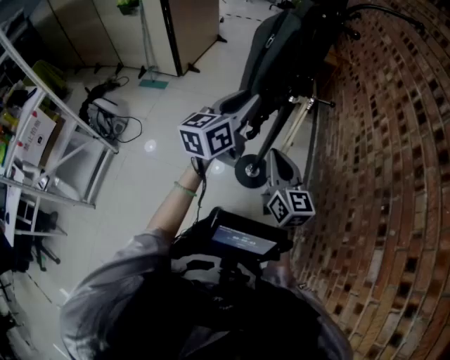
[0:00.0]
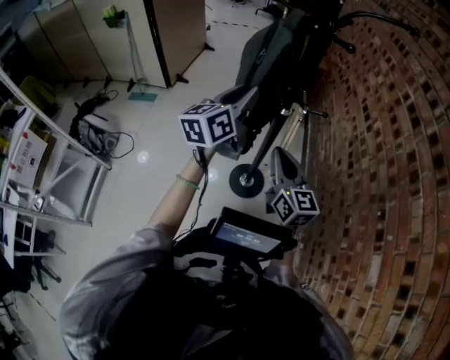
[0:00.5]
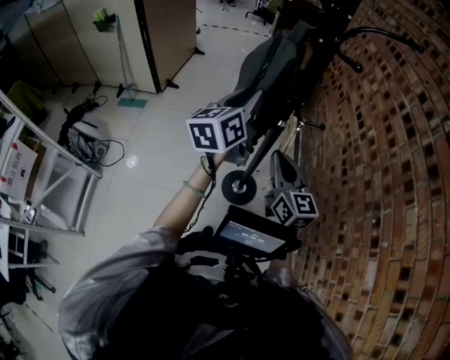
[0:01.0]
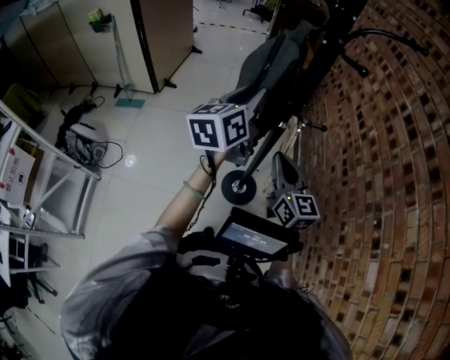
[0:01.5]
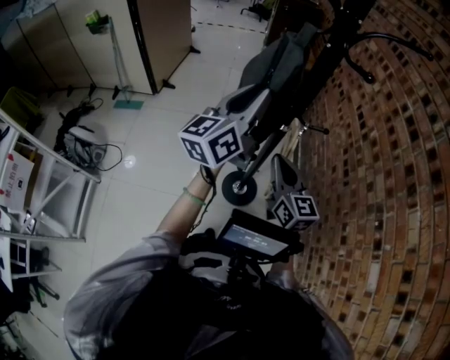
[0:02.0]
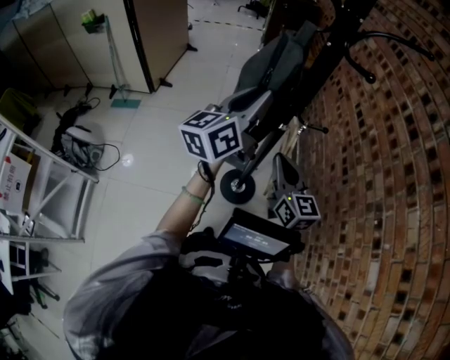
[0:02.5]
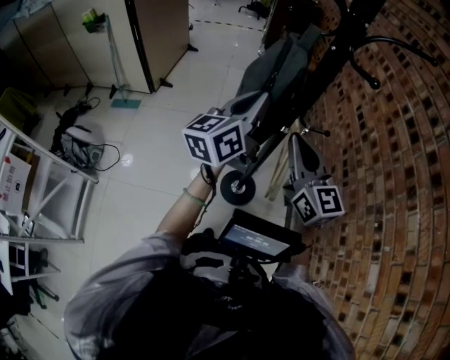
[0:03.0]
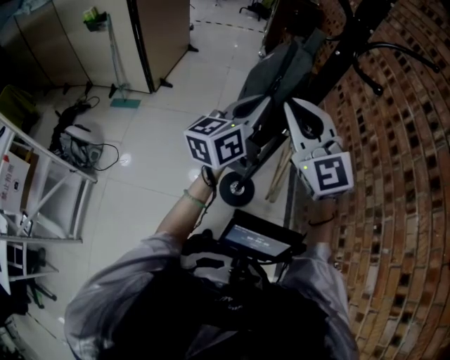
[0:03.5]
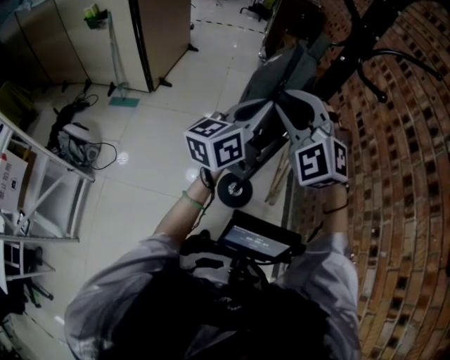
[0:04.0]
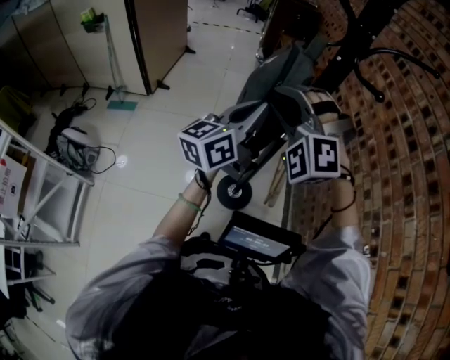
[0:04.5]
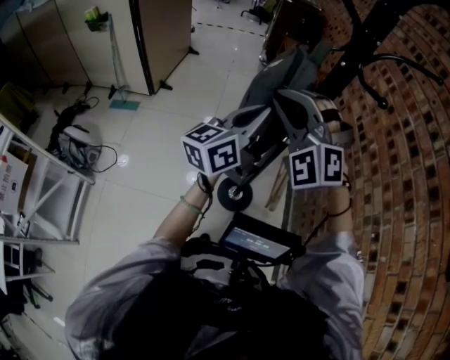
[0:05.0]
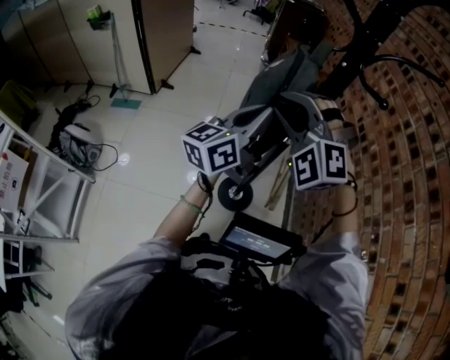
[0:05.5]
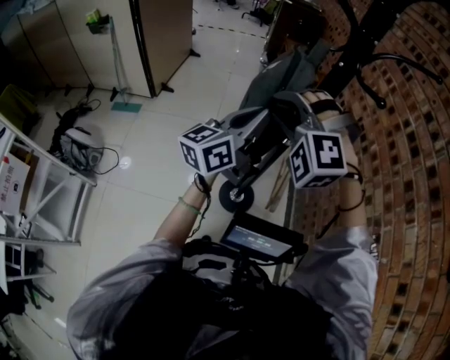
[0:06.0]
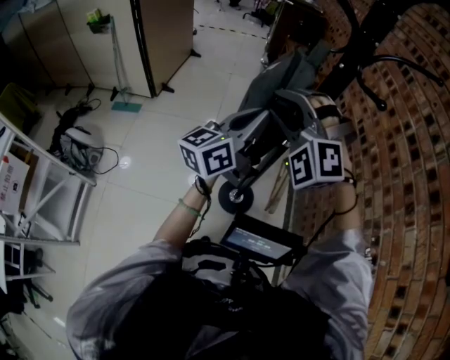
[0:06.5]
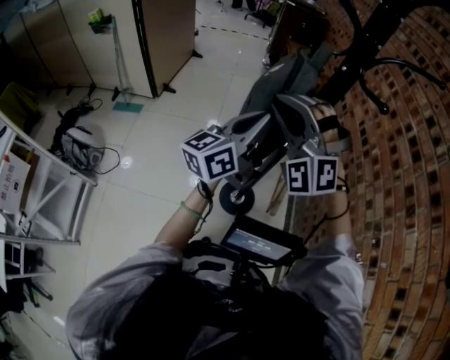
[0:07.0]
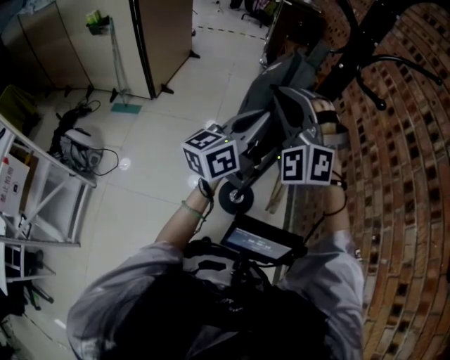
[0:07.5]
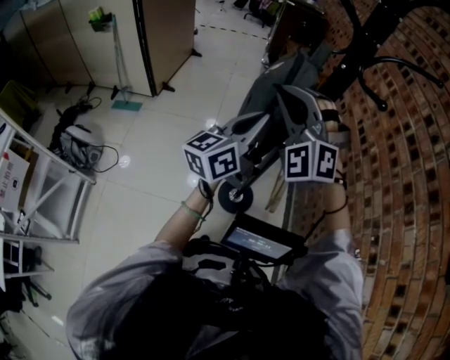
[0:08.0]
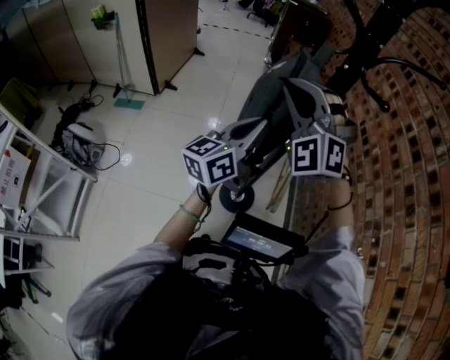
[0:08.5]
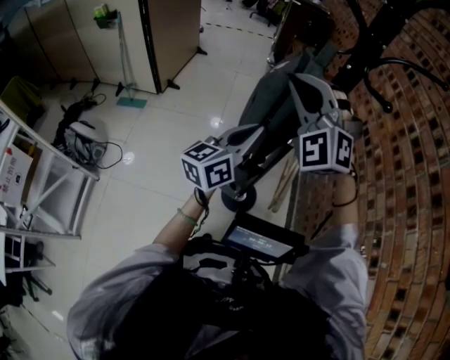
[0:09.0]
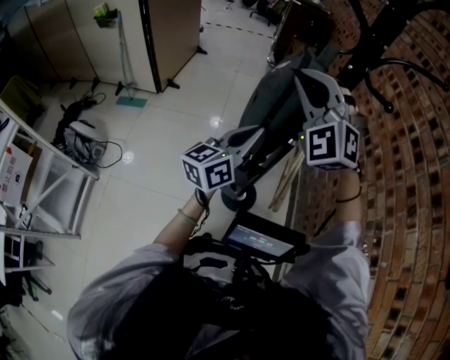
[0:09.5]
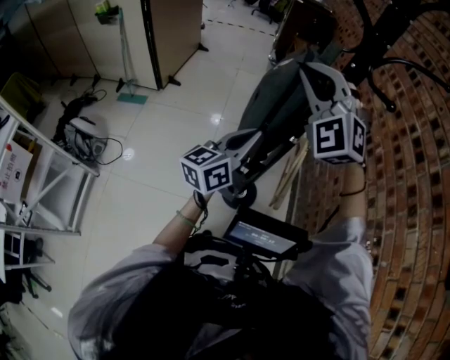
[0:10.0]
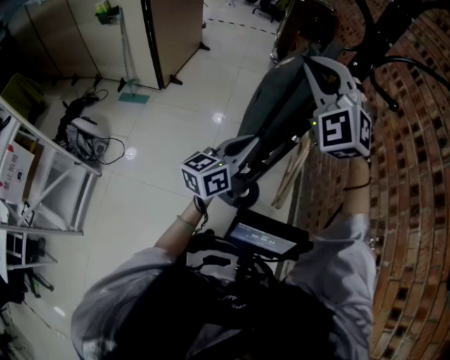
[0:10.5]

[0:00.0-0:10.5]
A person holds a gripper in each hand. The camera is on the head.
0:00.0 to 0:02.0: The left gripper heads forward and upward, covering some 10 cm, while the right gripper heads forward, covering about 10 cm.
0:02.0 to 0:04.0: The right gripper moves upward and to the left, some 20 cm, rotates around the line of its fingers by roughly 70 degrees, counterclockwise from behind, and opens up. Meanwhile the left gripper closes up.
0:04.0 to 0:06.5: The right gripper swivels approximately 20 degrees.
0:06.5 to 0:08.5: The right gripper closes up.
0:08.5 to 0:10.5: The left gripper shifts about 5 cm downward.

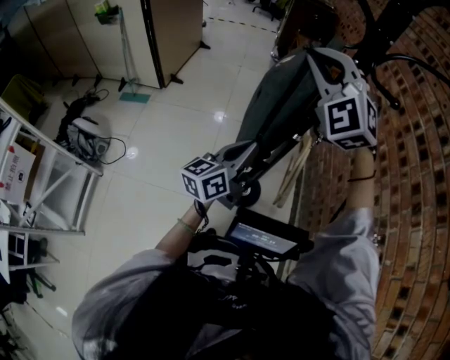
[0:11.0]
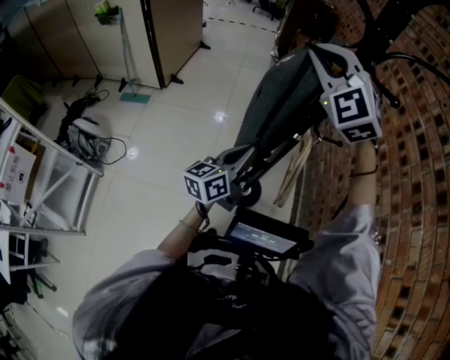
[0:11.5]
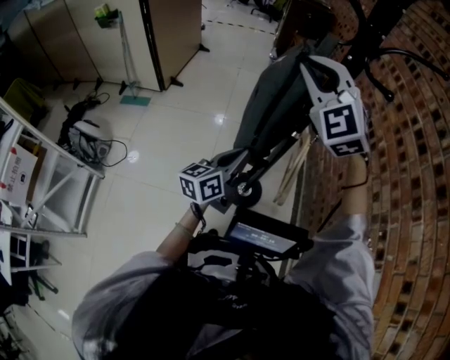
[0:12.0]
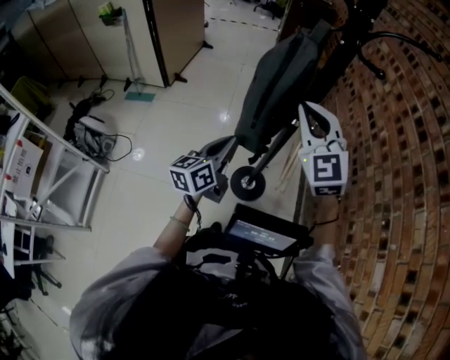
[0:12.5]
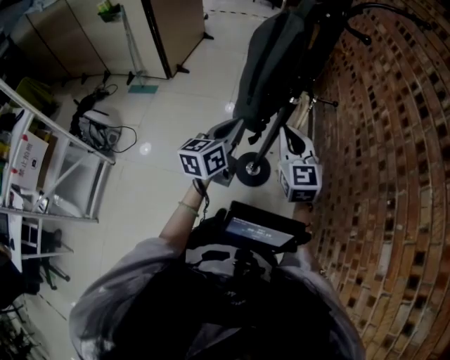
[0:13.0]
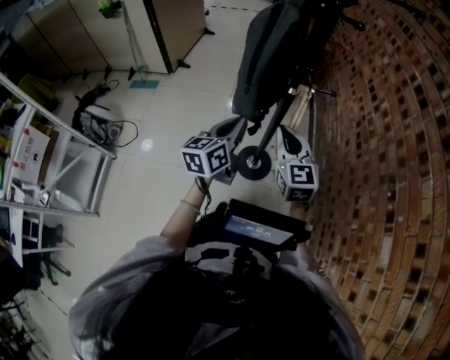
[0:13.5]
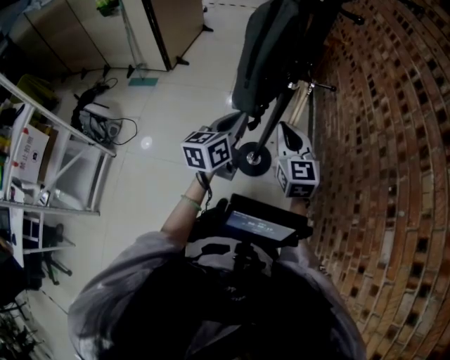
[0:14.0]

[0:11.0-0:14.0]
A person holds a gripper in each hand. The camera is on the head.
0:11.0 to 0:12.5: The right gripper shifts about 15 cm downward, backward and to the right, and swivels roughly 30 degrees. Meanwhile the left gripper changes place by some 5 cm.
0:12.5 to 0:14.0: The right gripper is displaced downward and backward by some 20 cm, and turns by approximately 30 degrees; the left gripper moves about 5 cm.

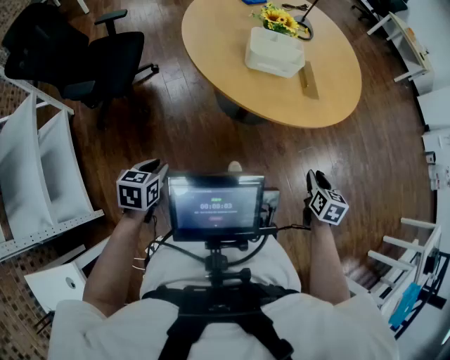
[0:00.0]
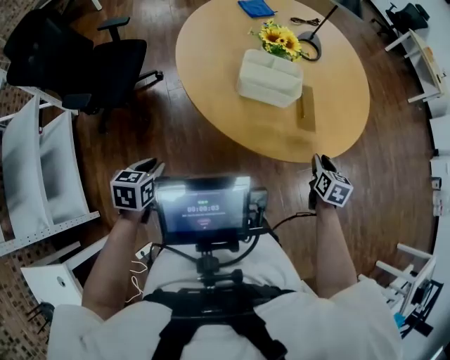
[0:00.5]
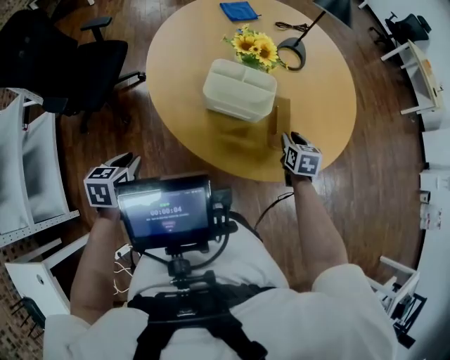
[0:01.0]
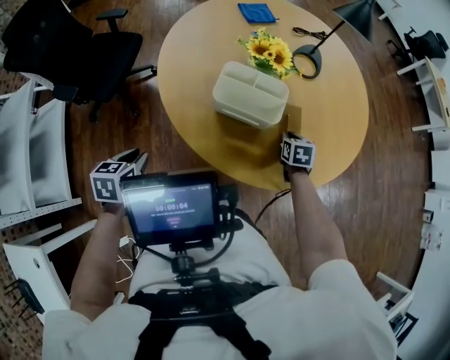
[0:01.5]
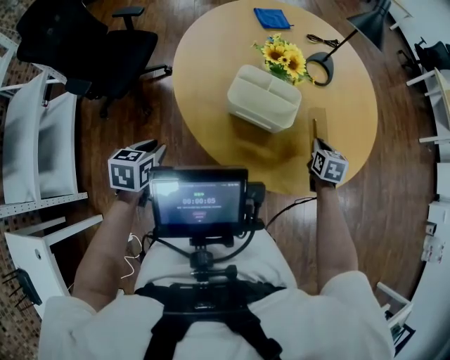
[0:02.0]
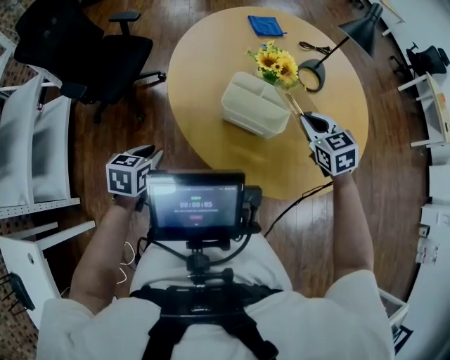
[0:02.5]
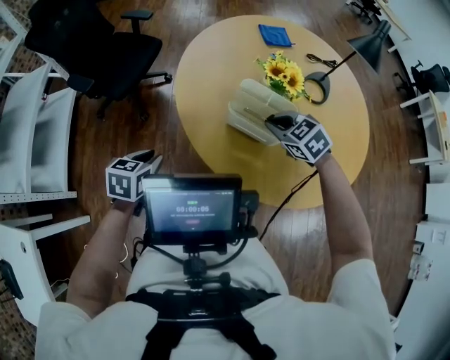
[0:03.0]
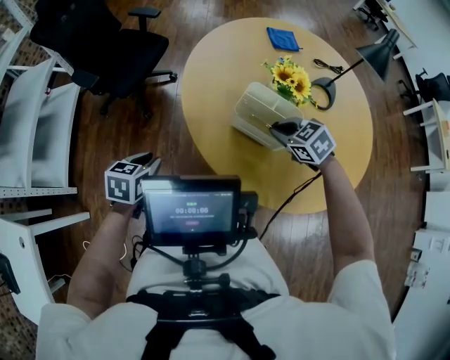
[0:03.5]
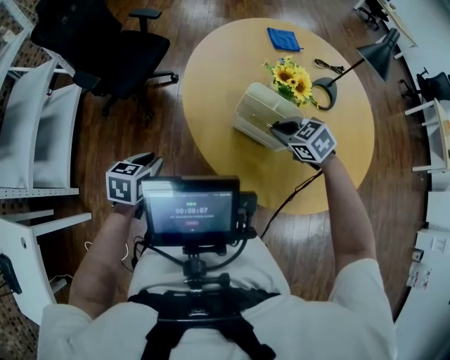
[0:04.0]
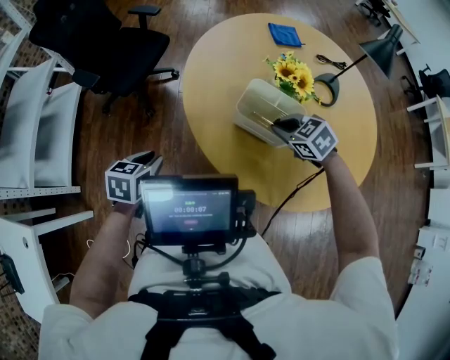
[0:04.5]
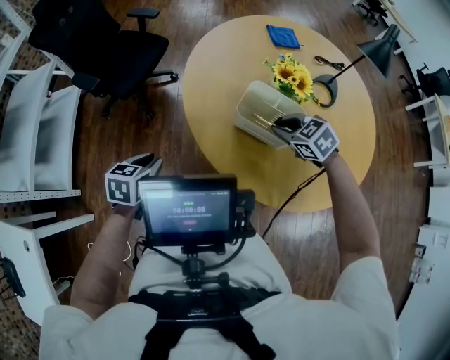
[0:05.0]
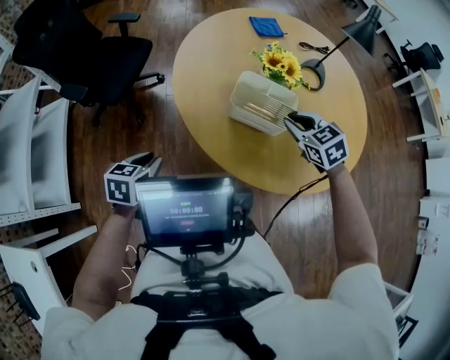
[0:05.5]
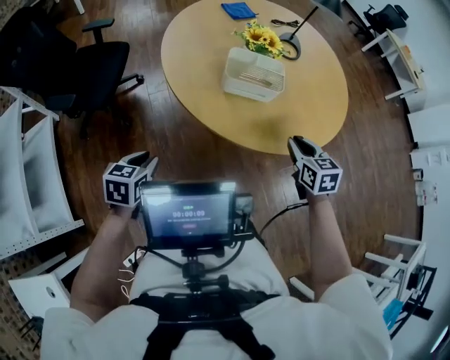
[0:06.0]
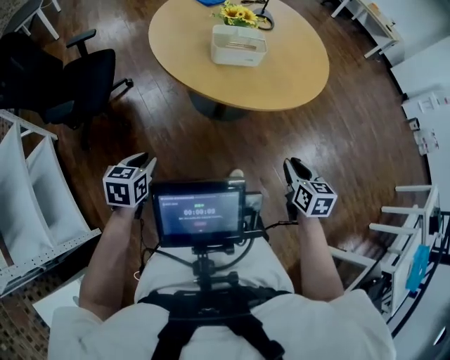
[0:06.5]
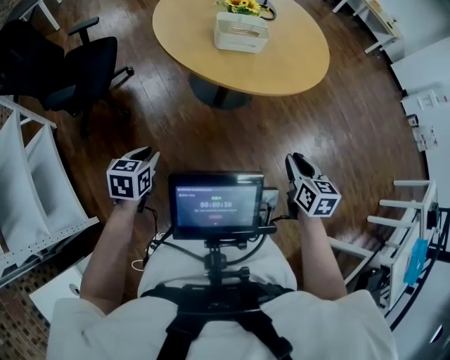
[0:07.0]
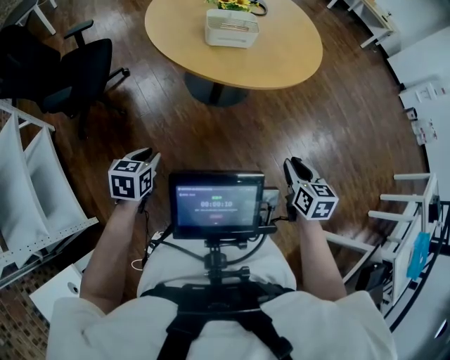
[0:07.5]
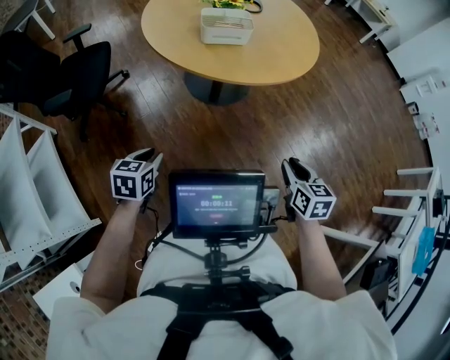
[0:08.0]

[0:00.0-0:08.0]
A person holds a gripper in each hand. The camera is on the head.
0:00.0 to 0:02.0: The right gripper moves forward, about 40 cm, rotates roughly 20 degrees, and closes its fingers, while the left gripper heads forward and to the right, covering roughly 20 cm.
0:02.0 to 0:04.0: The right gripper shifts by approximately 25 cm, and turns by about 60 degrees.
0:04.0 to 0:06.0: The right gripper moves about 20 cm, and turns by about 60 degrees. The left gripper shifts by approximately 10 cm.
0:06.0 to 0:08.0: The left gripper shifts roughly 15 cm backward, while the right gripper moves backward, about 35 cm, and rotates approximately 20 degrees.

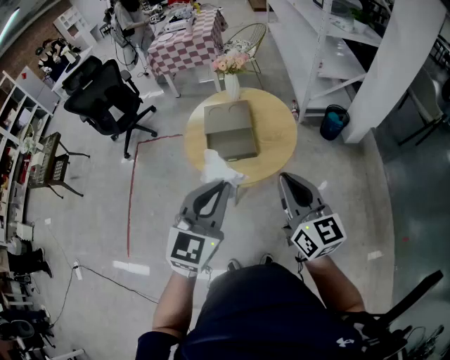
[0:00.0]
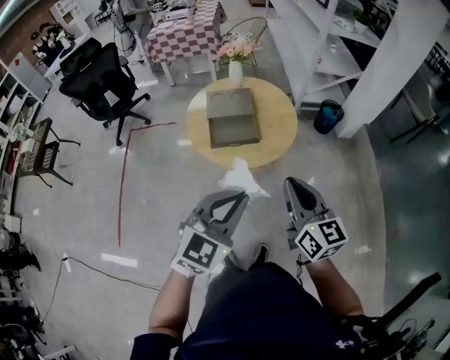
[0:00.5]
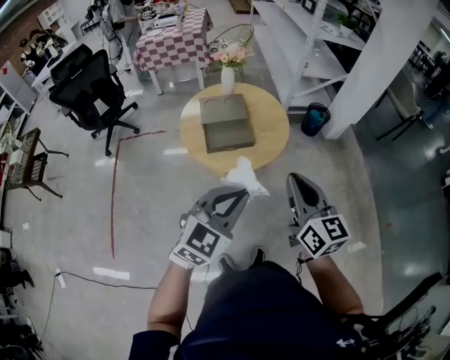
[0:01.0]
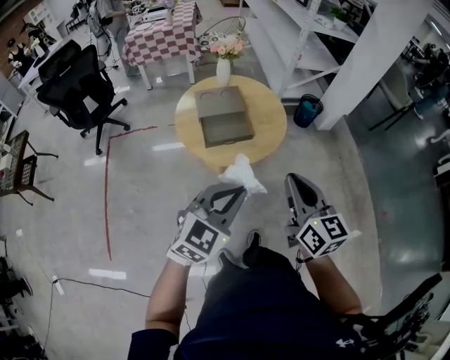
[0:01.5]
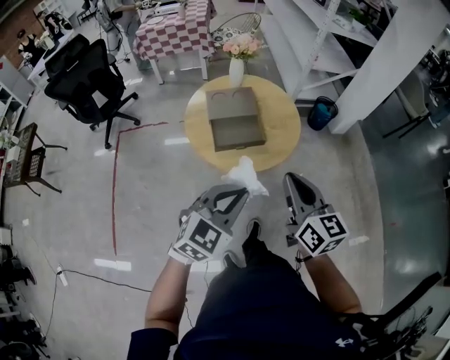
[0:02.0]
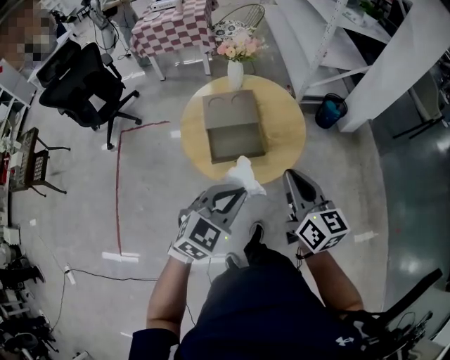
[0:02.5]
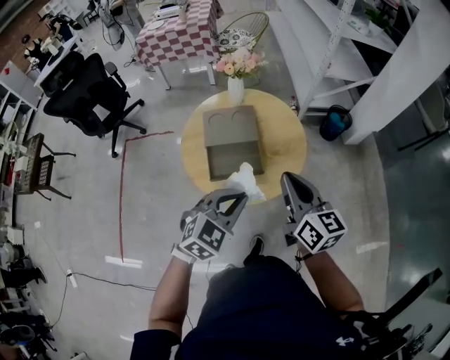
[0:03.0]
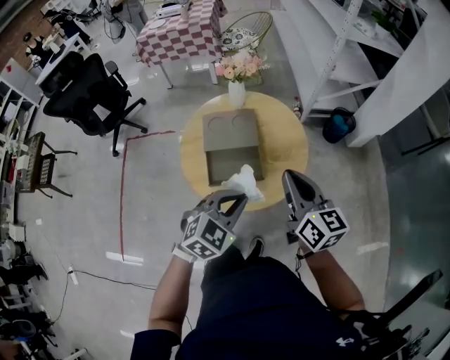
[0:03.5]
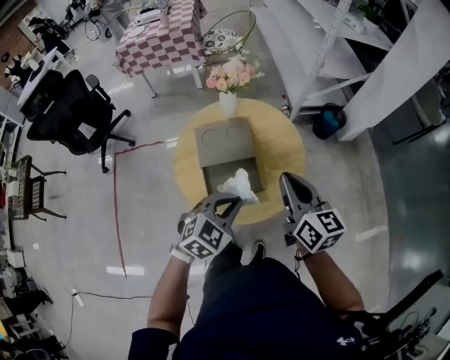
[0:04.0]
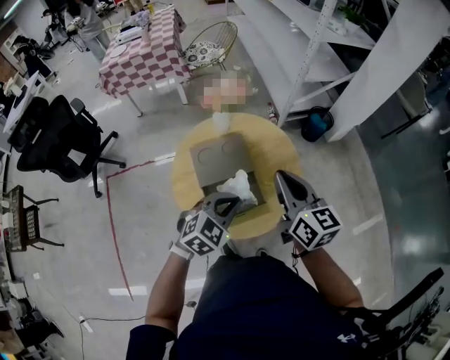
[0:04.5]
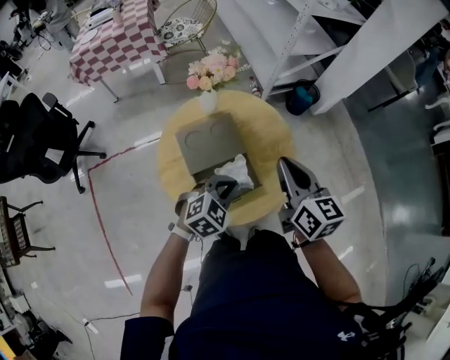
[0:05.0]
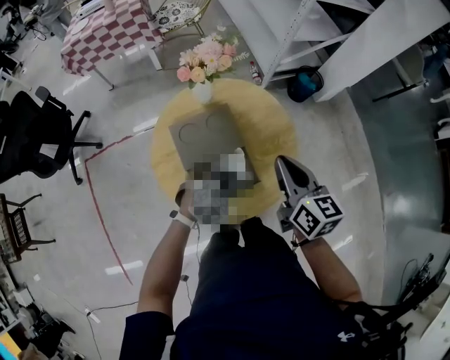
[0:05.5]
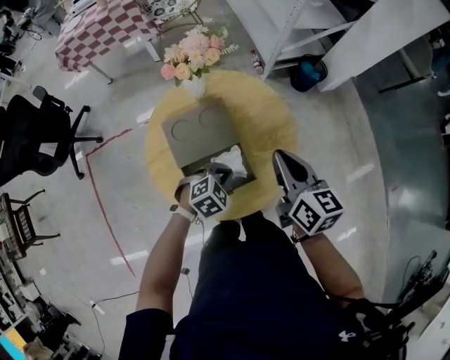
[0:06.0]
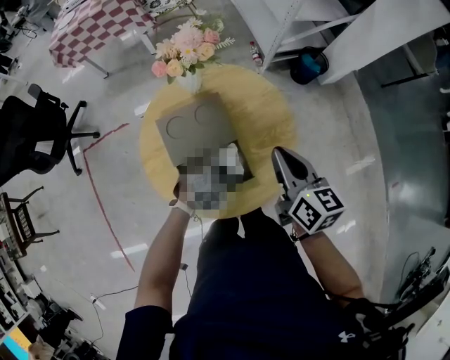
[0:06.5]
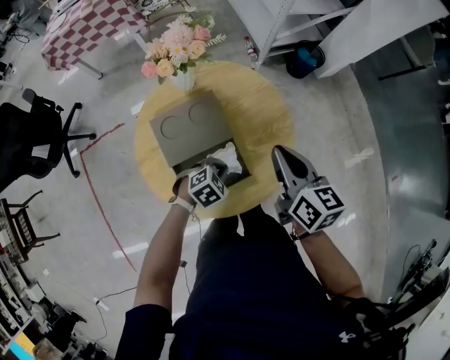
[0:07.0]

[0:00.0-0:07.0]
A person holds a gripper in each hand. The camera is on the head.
0:00.0 to 0:02.0: The right gripper is displaced to the left by about 10 cm. Meanwhile the left gripper is displaced downward and to the left by roughly 10 cm, and rotates about 30 degrees.
0:02.0 to 0:03.5: The grippers both shift forward by approximately 20 cm.
0:03.5 to 0:05.0: The right gripper moves forward and to the left, about 10 cm. The left gripper shifts roughly 15 cm forward, downward and to the left, and changes its angle by some 20 degrees.
0:05.0 to 0:07.0: The right gripper goes about 10 cm downward and forward, while the left gripper is displaced downward by approximately 15 cm, and turns by roughly 20 degrees.
